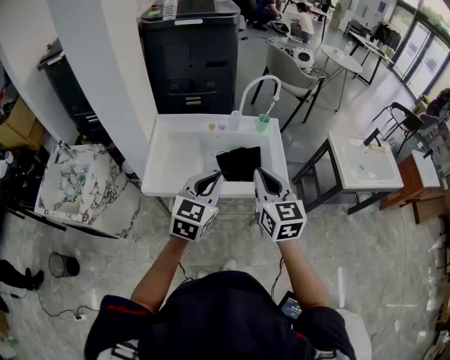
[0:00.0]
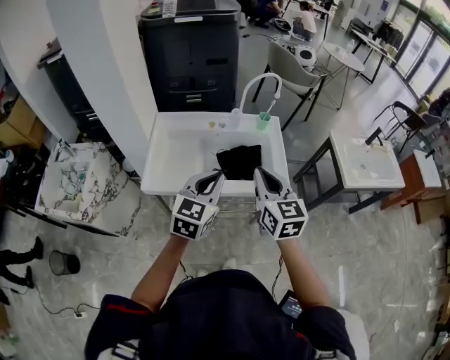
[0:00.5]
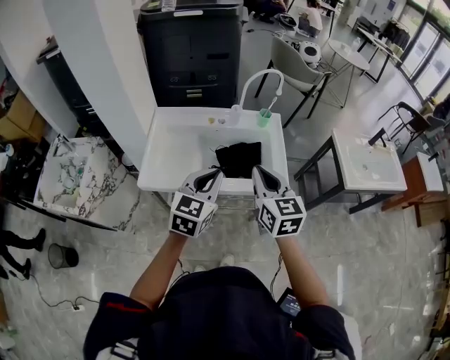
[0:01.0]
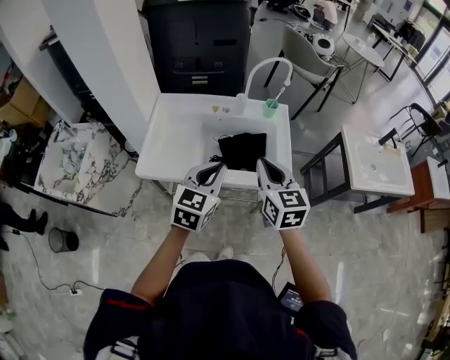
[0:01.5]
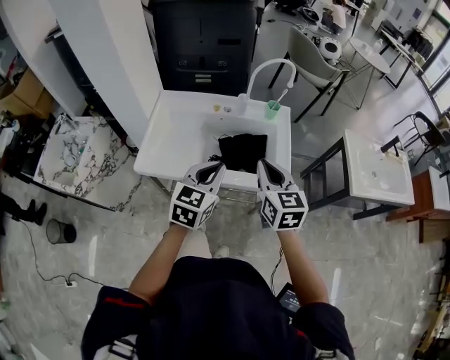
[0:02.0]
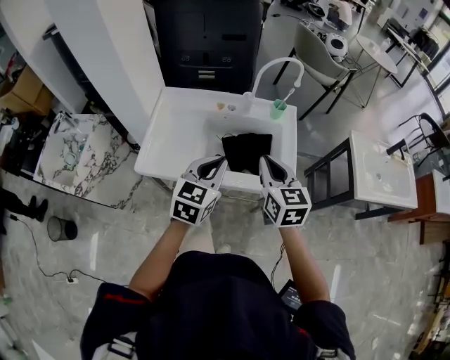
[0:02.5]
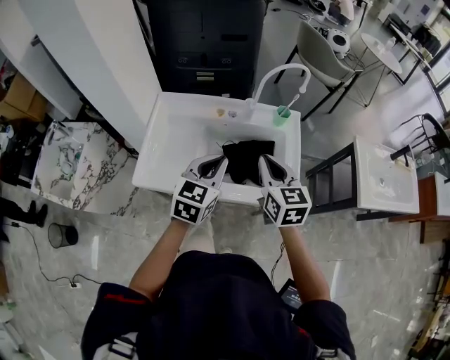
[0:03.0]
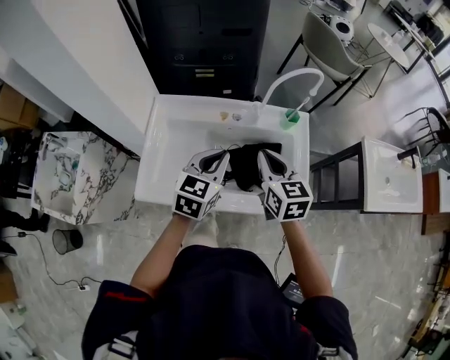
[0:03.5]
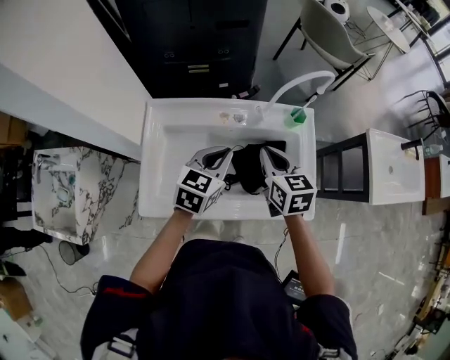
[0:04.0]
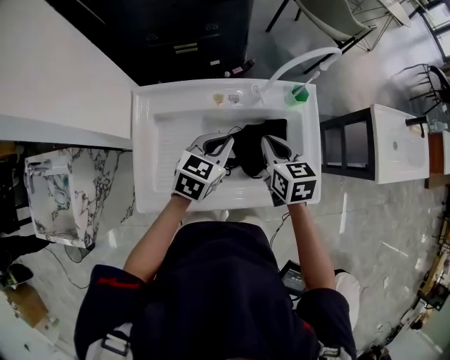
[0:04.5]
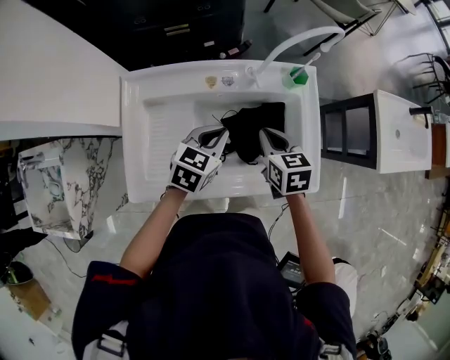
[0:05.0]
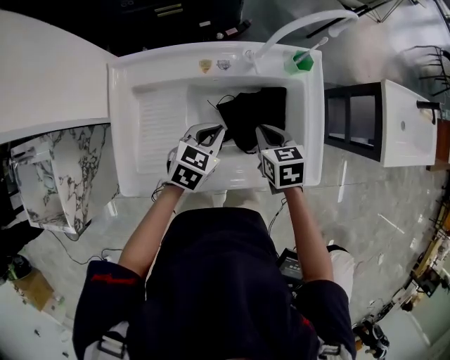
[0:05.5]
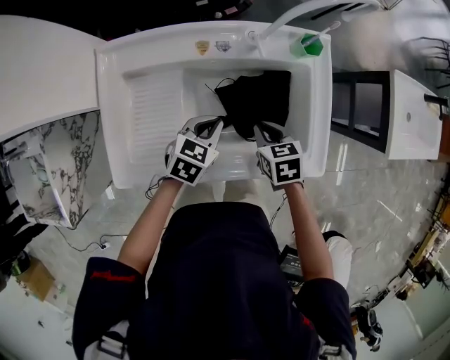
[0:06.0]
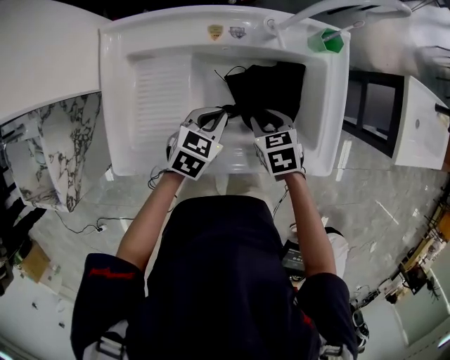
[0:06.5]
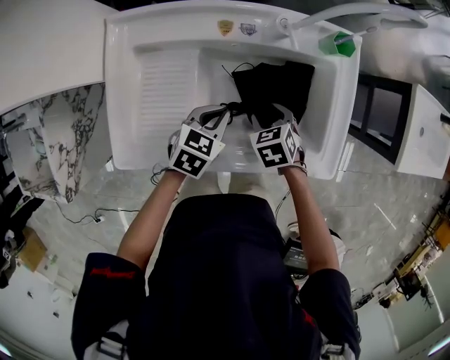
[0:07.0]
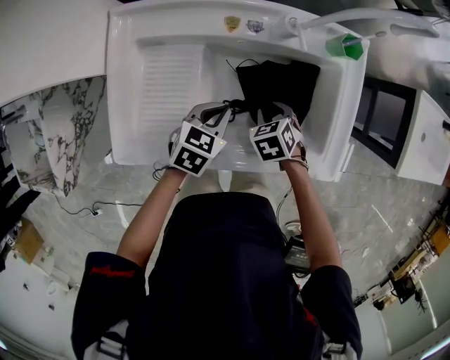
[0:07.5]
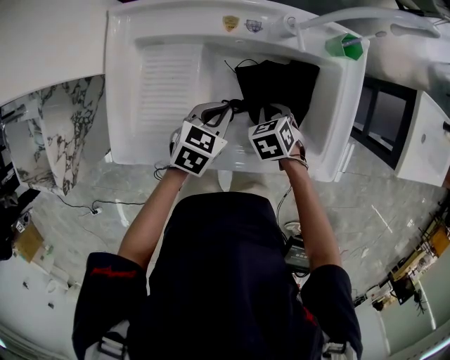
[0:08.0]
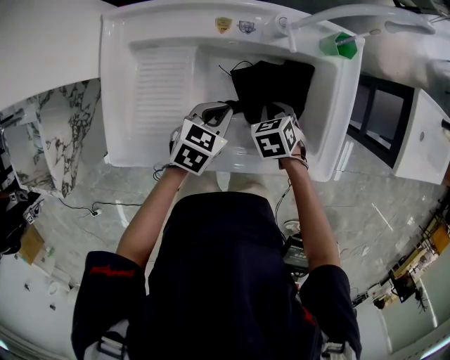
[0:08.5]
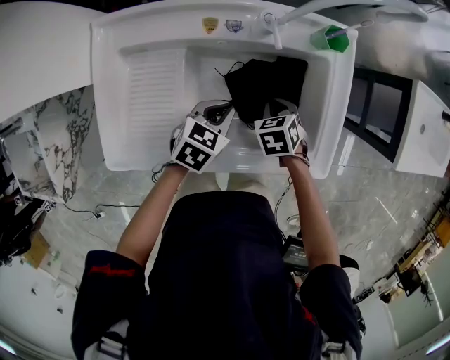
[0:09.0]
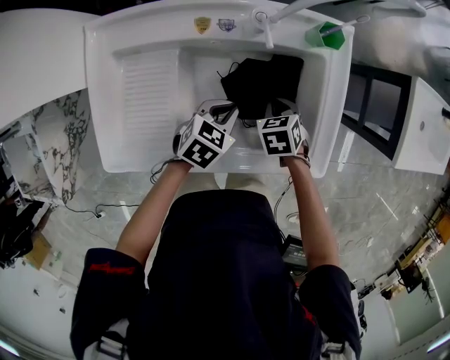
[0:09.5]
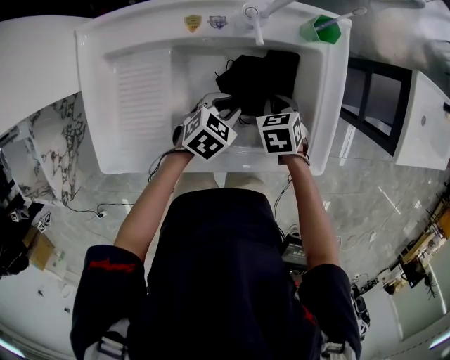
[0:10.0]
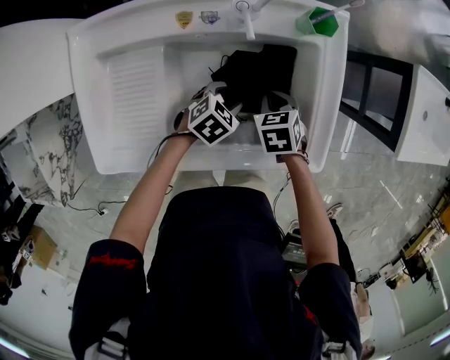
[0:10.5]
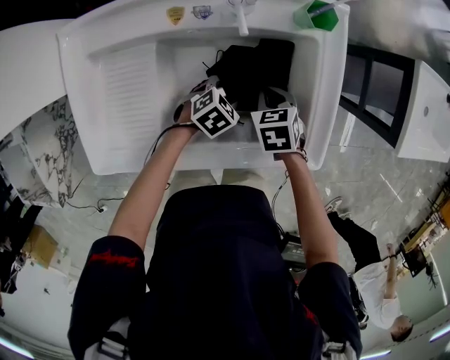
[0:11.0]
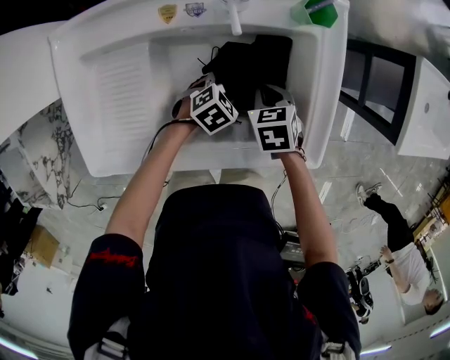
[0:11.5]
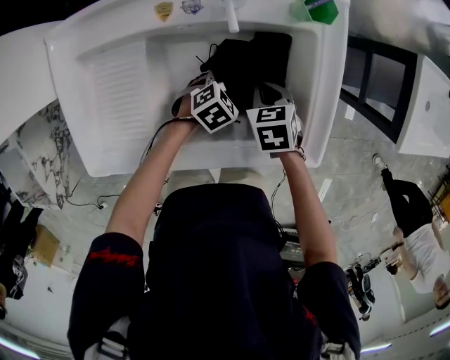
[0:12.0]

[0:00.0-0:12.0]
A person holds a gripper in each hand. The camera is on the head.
0:00.0 to 0:02.0: The left gripper is displaced downward by roughly 5 cm. The right gripper travels downward and forward by roughly 10 cm.
0:02.0 to 0:04.0: The grippers both shift forward by approximately 25 cm.
0:04.0 to 0:06.0: The grippers both shift downward by about 20 cm. The left gripper changes its angle by about 20 degrees; the right gripper swivels some 30 degrees.
0:06.0 to 0:08.0: The right gripper heads downward, covering approximately 10 cm, changes its angle by about 30 degrees, and opens, then closes again.
0:08.0 to 0:10.0: The left gripper travels to the right and downward by about 10 cm, and opens up; the right gripper goes about 5 cm to the right.
0:10.0 to 0:12.0: The left gripper moves downward, approximately 10 cm, and opens up.

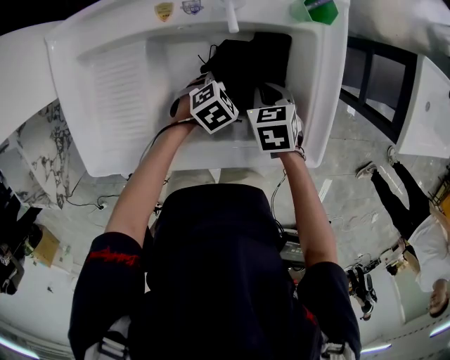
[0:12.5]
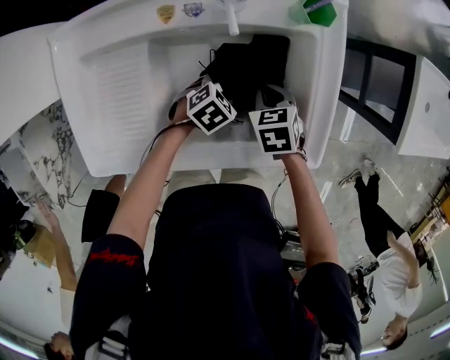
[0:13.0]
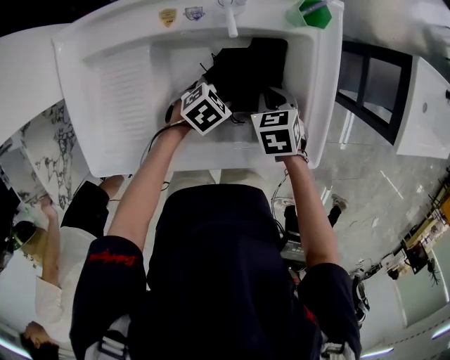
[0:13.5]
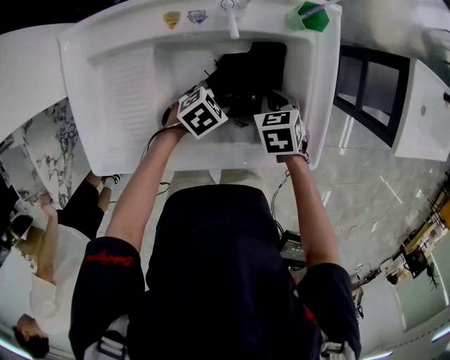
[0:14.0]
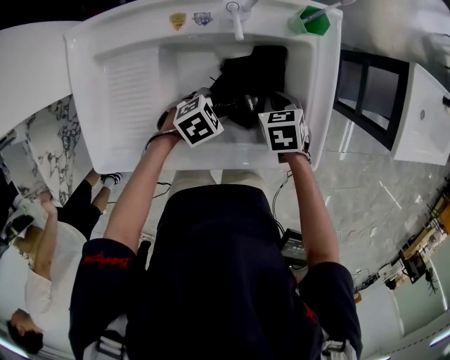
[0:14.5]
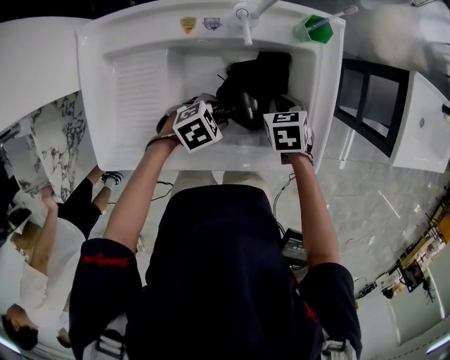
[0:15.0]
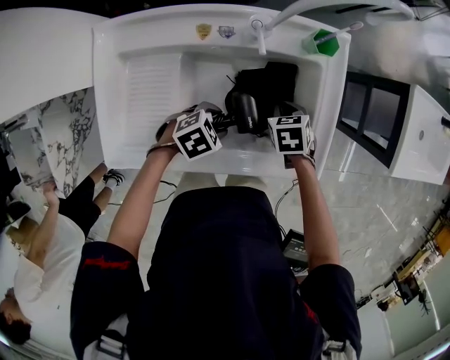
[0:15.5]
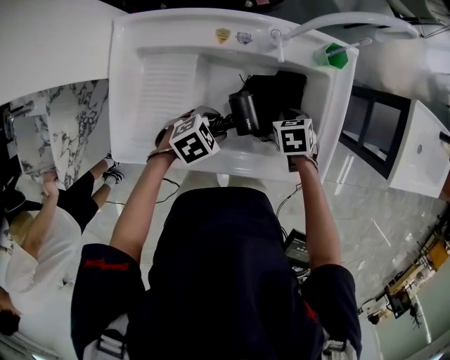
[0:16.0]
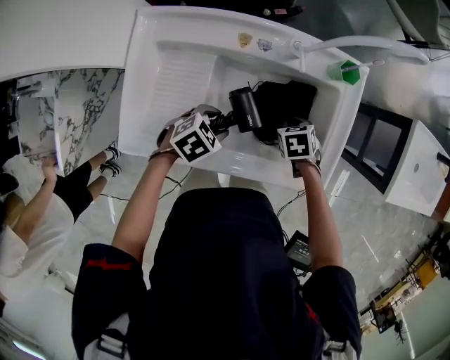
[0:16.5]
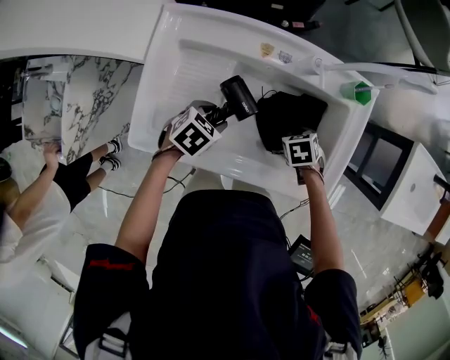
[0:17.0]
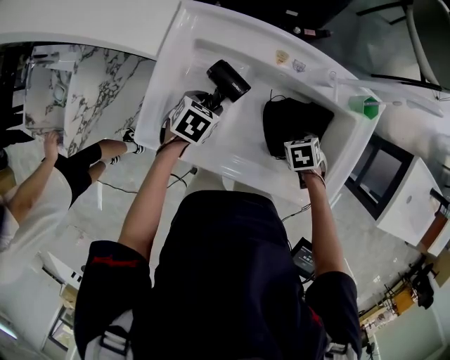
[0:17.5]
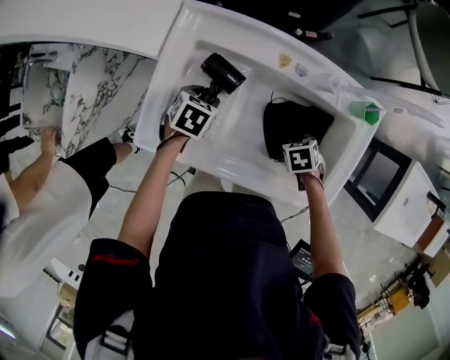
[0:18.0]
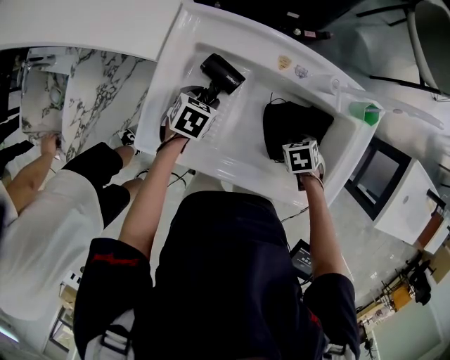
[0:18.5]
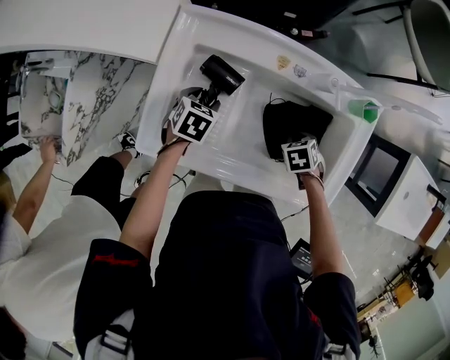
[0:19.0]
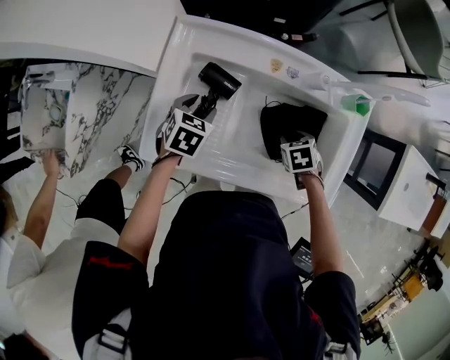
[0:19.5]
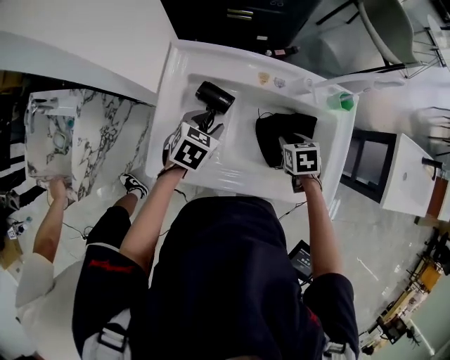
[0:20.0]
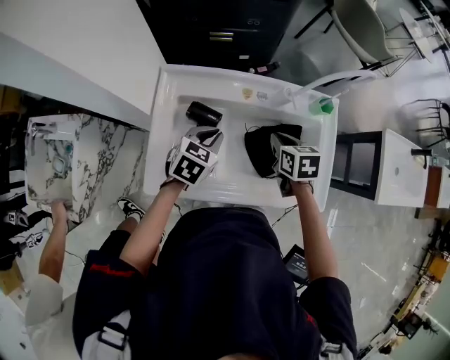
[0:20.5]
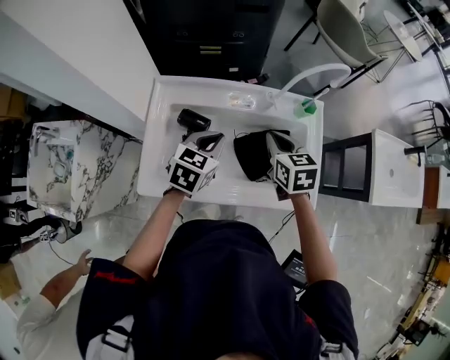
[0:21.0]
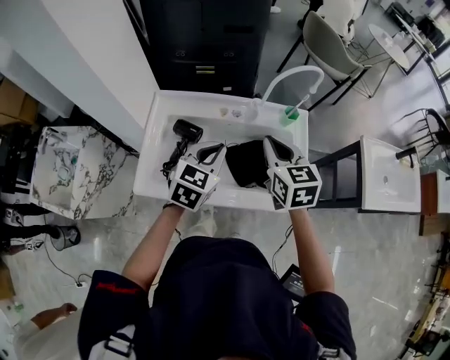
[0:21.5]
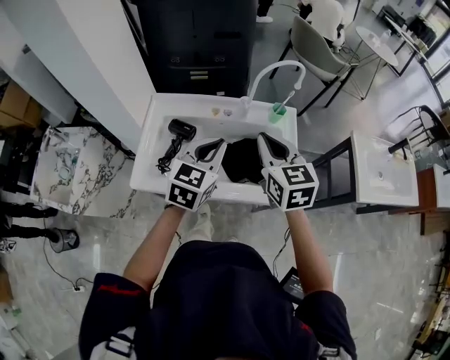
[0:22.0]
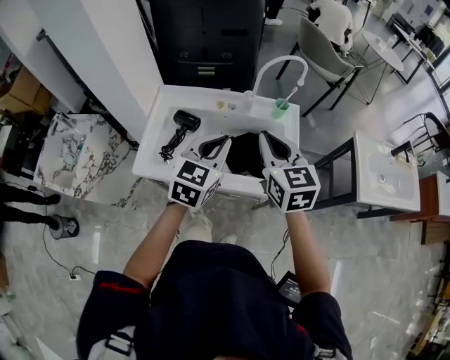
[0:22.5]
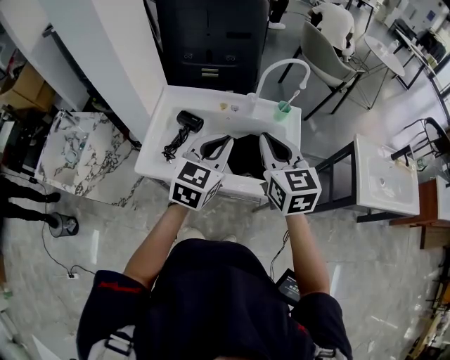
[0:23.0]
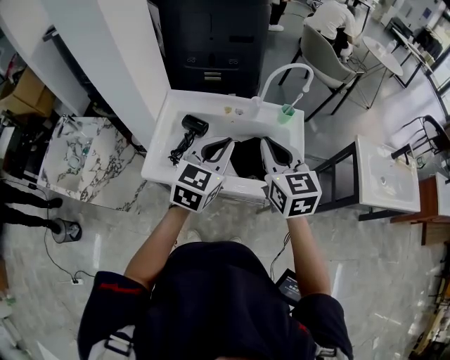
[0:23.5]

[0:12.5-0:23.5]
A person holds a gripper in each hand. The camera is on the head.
0:12.5 to 0:14.5: The left gripper shifts roughly 5 cm upward.
0:14.5 to 0:16.0: The left gripper shifts about 10 cm upward and backward.
0:16.0 to 0:18.0: The left gripper shifts by some 20 cm, and swivels approximately 50 degrees. The right gripper ends up approximately 5 cm from where it was.
0:18.0 to 0:20.0: The two grippers go roughly 10 cm upward. The right gripper turns by about 20 degrees, and opens up, while the left gripper rotates some 20 degrees.
0:20.0 to 0:21.5: The right gripper moves upward, roughly 25 cm, tilts its fingers some 40 degrees upward, and closes its fingers. The left gripper shifts some 25 cm upward and to the right, changes its angle by about 30 degrees, and closes up.
0:21.5 to 0:23.5: The left gripper heads upward and backward, covering roughly 15 cm, while the right gripper travels backward and upward by about 15 cm.

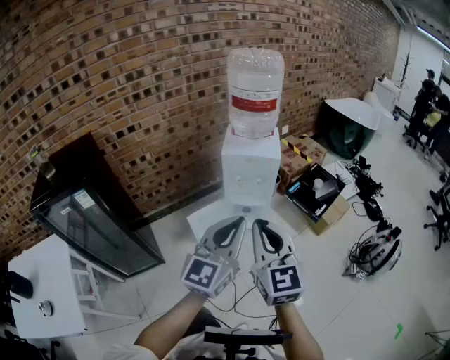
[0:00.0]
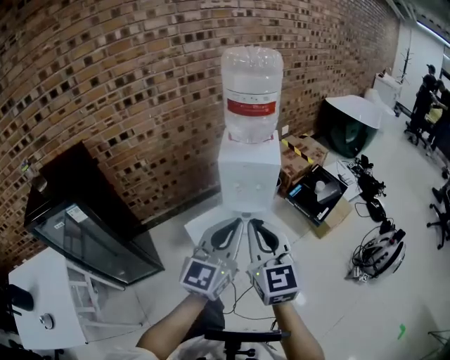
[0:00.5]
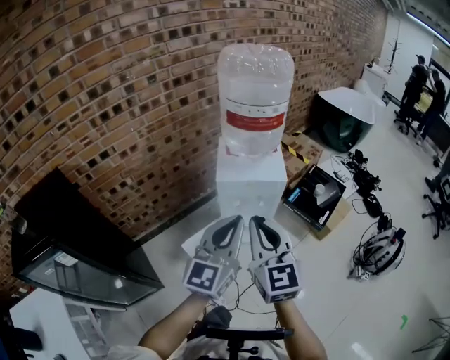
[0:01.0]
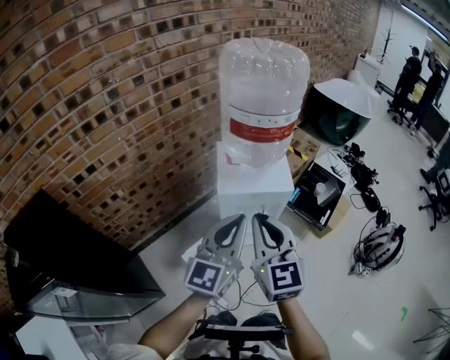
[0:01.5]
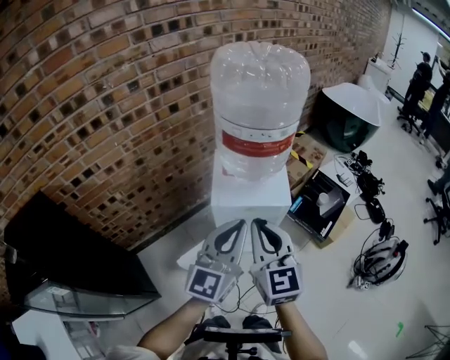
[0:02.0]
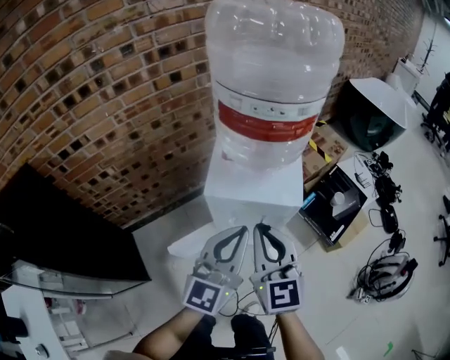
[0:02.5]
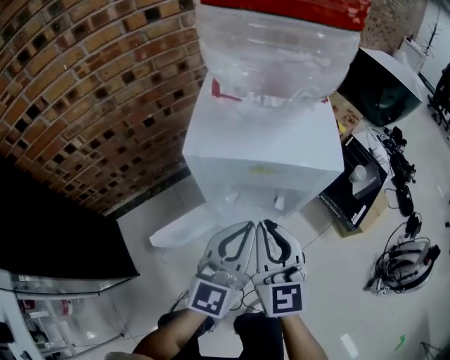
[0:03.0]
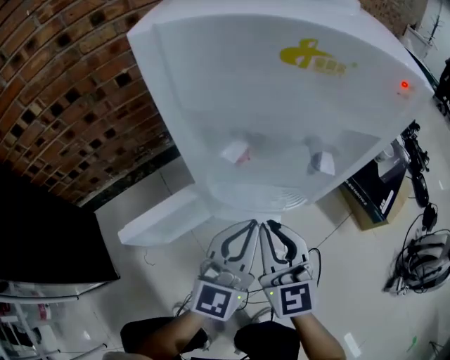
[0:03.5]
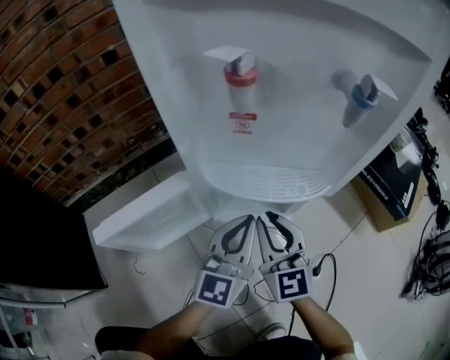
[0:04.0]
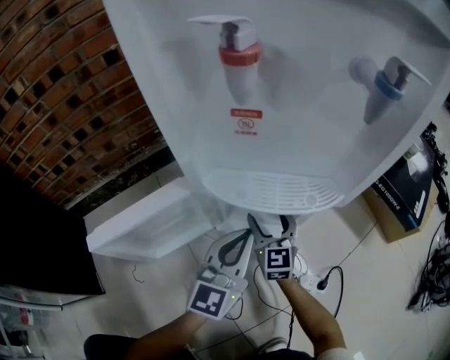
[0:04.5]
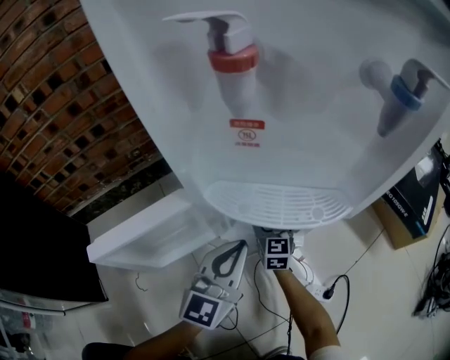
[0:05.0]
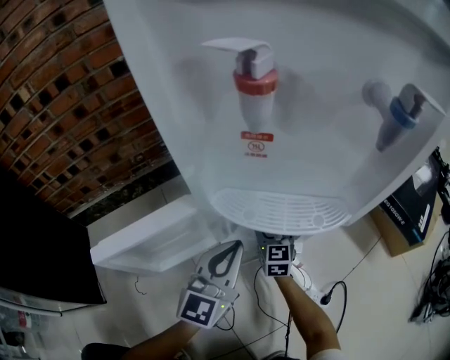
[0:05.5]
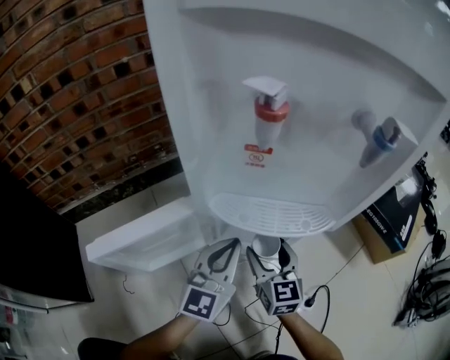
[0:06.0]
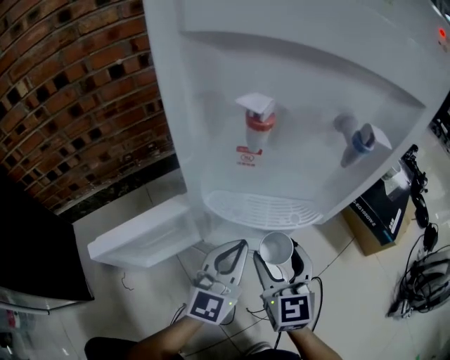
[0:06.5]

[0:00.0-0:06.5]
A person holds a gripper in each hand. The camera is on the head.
0:00.0 to 0:02.0: The two grippers go some 35 cm forward.
0:02.0 to 0:04.5: Both grippers move downward, approximately 80 cm. The right gripper opens up.
0:04.5 to 0:06.5: The right gripper moves upward and backward, approximately 15 cm.
